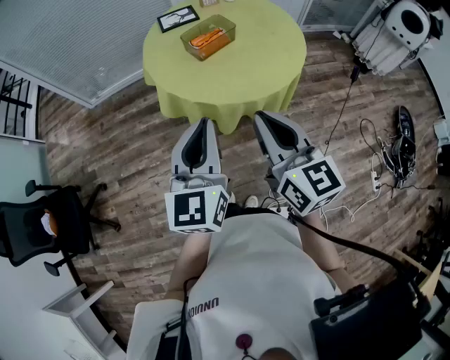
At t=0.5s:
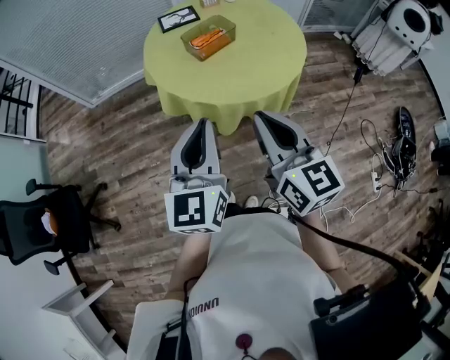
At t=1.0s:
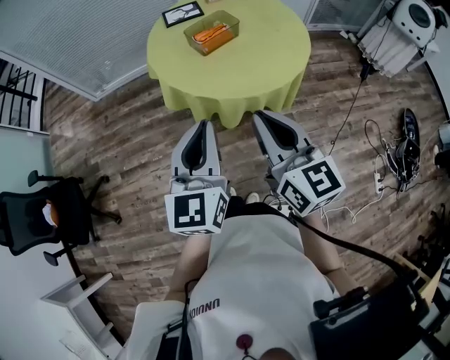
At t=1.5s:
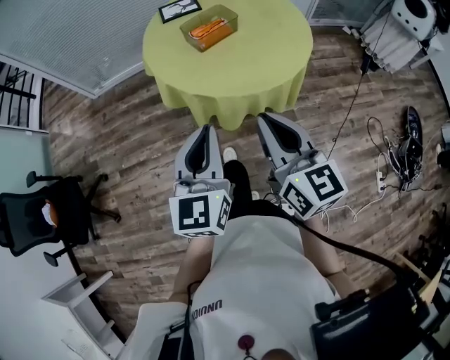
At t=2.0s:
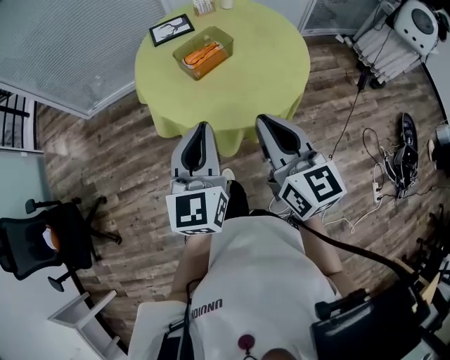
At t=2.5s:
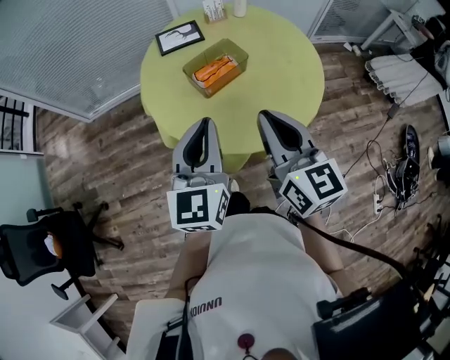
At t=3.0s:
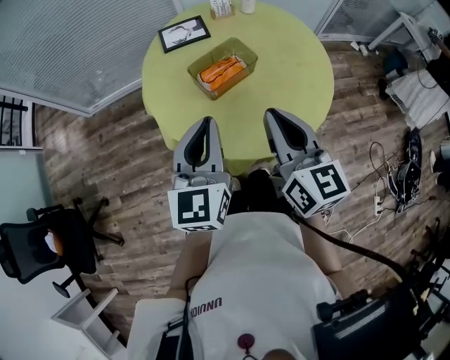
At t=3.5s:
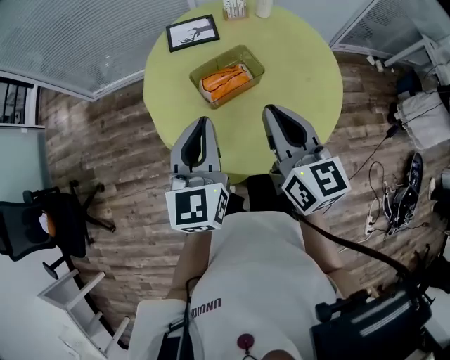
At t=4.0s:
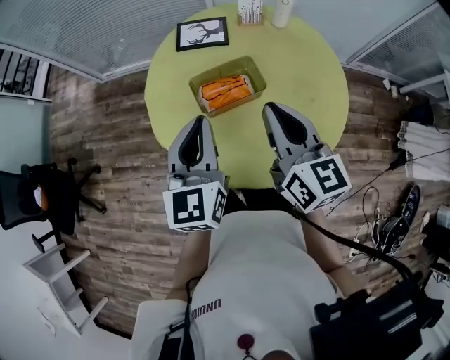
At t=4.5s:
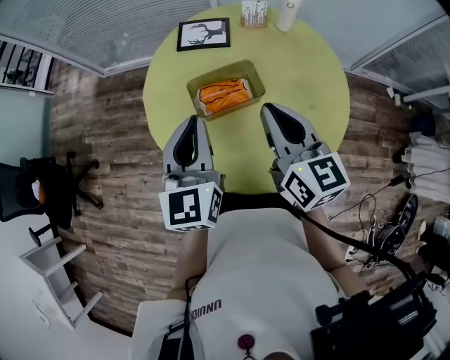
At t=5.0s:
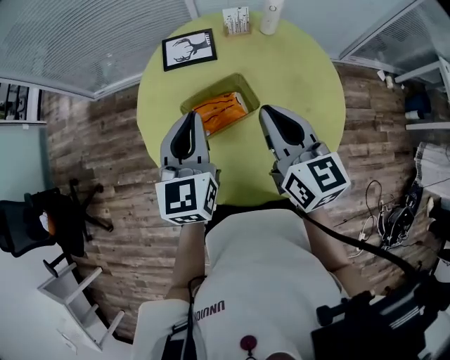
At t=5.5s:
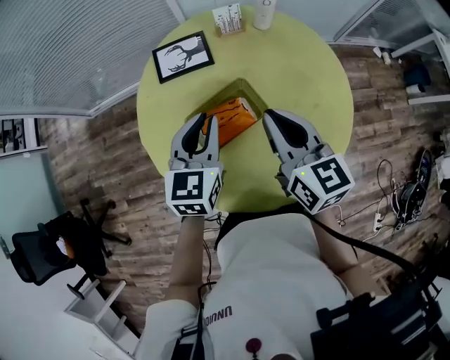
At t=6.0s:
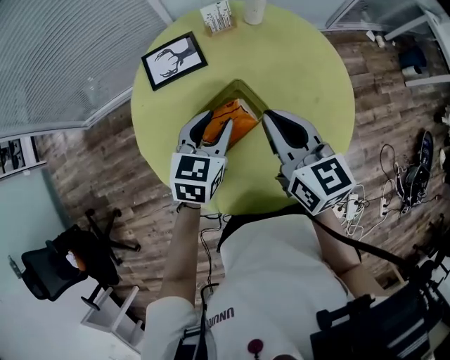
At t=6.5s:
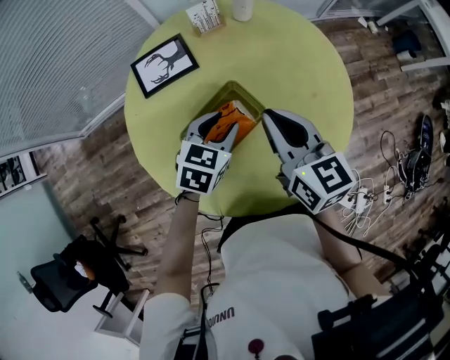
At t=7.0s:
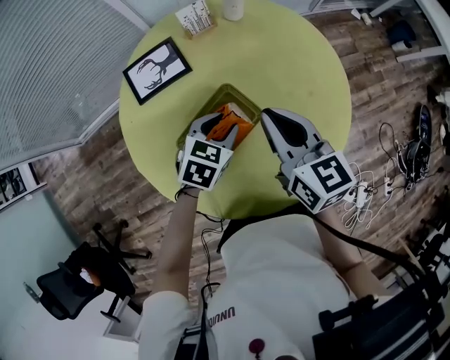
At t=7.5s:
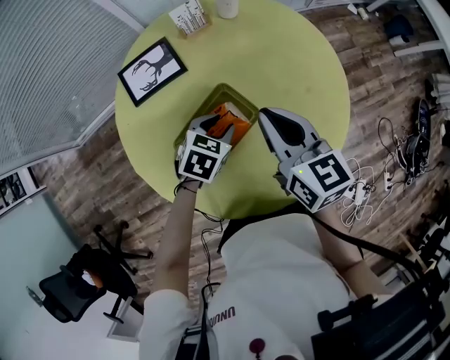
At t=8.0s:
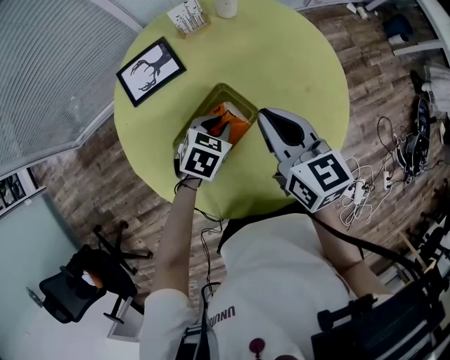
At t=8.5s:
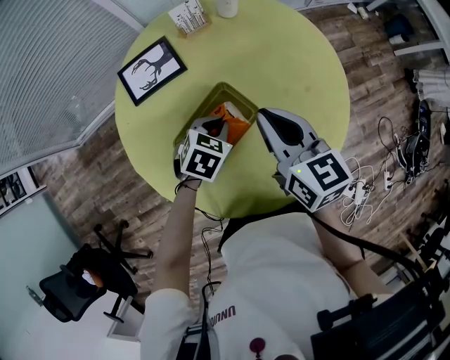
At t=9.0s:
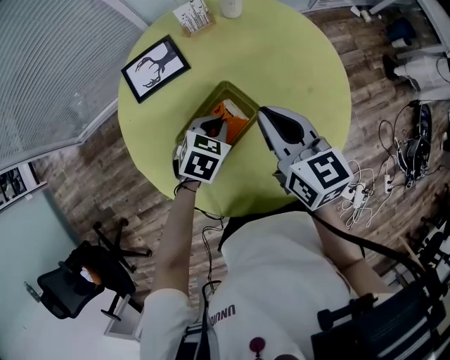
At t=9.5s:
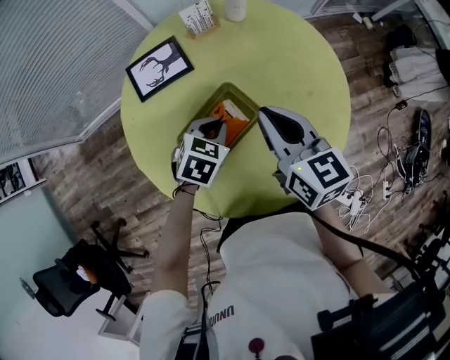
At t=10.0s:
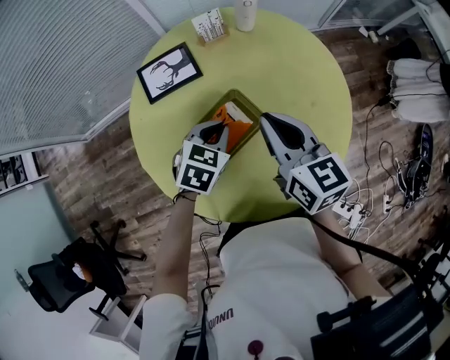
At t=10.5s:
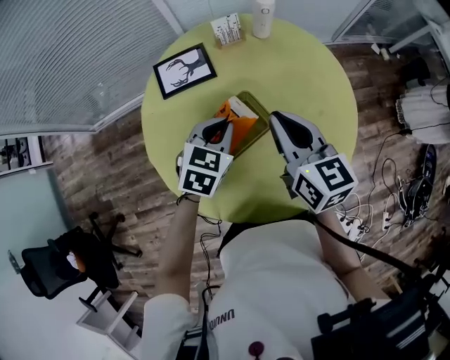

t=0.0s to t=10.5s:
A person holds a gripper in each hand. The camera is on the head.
t=0.0s to t=2.0s: Both grippers travel together forward, approximately 10 cm.
t=2.0s to t=4.0s: Both grippers move forward, about 25 cm. The left gripper turns by some 20 degrees.
t=4.0s to t=6.5s: The right gripper moves roughly 10 cm; the left gripper is displaced downward by approximately 20 cm, tips its fingers downward by approximately 30 degrees, and opens up.
t=6.5s to t=8.5s: The left gripper is displaced downward by about 5 cm, and closes up.
t=8.5s to t=10.5s: The left gripper is displaced upward by roughly 10 cm, and turns by roughly 20 degrees.

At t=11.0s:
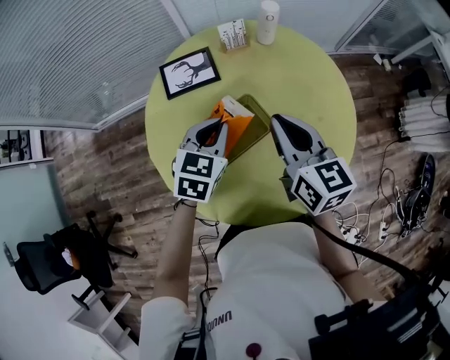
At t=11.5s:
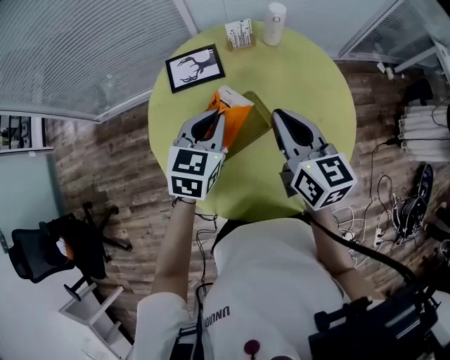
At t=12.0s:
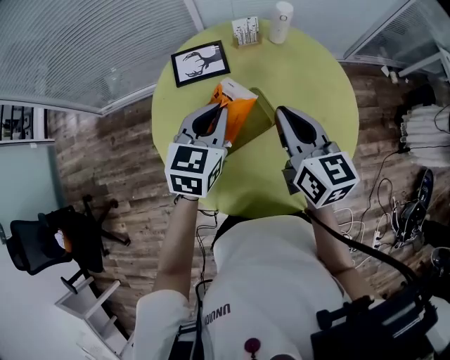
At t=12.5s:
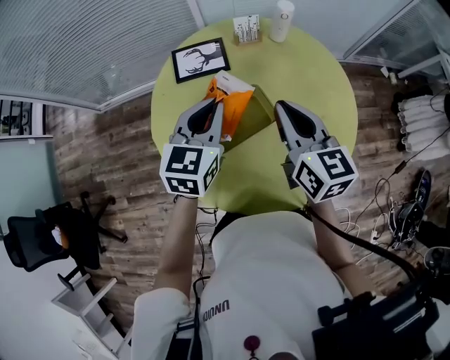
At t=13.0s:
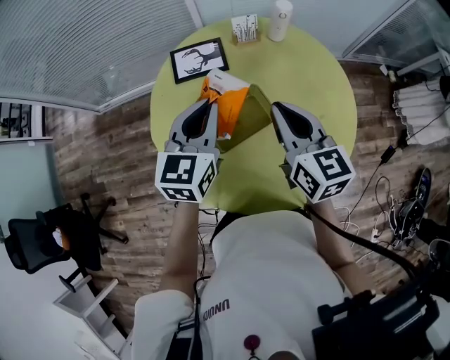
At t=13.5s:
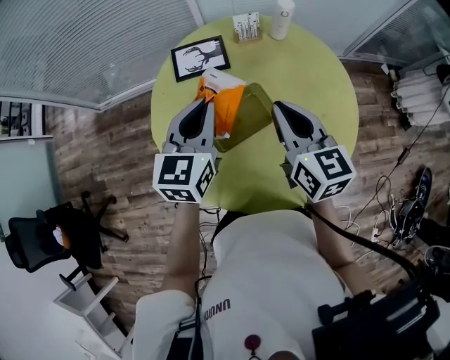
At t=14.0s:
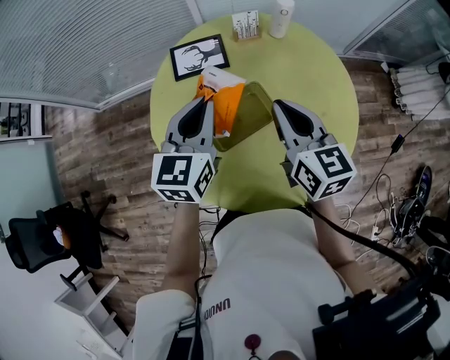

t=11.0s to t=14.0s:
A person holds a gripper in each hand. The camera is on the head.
t=11.0s to t=12.5s: The left gripper is displaced upward by some 5 cm.
t=12.5s to t=14.0s: The grippers move only a little.

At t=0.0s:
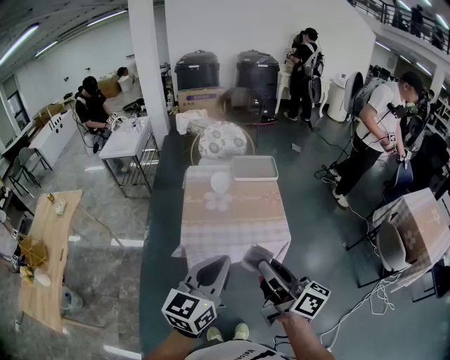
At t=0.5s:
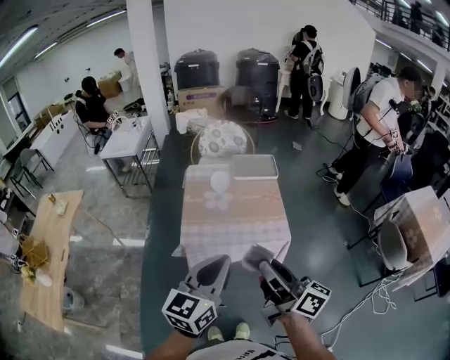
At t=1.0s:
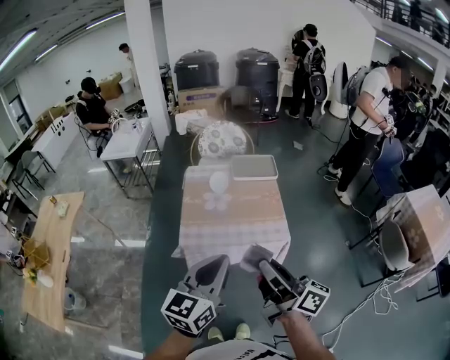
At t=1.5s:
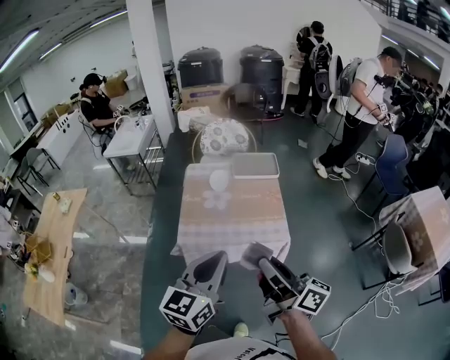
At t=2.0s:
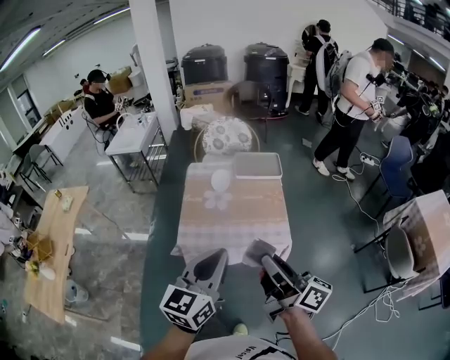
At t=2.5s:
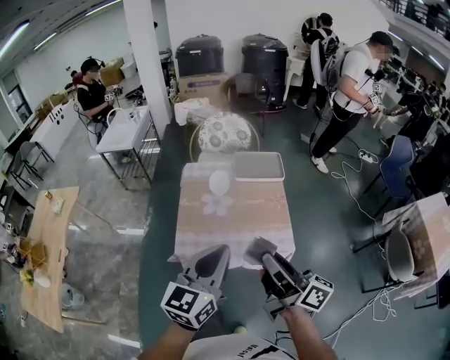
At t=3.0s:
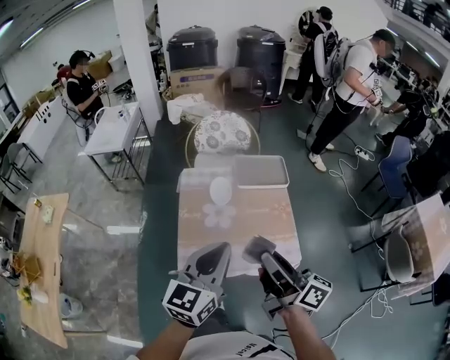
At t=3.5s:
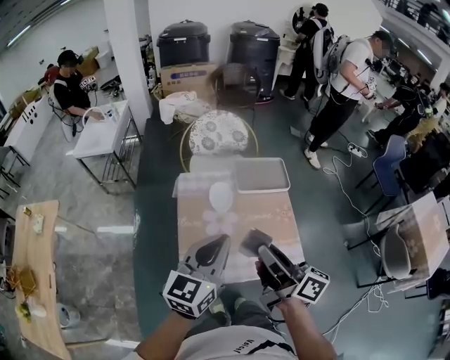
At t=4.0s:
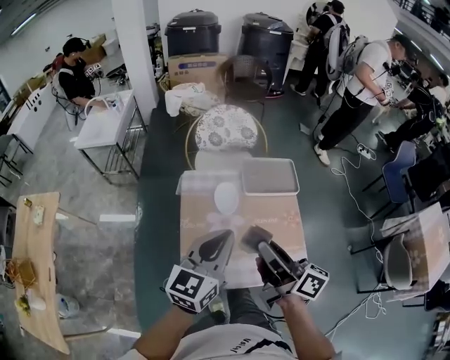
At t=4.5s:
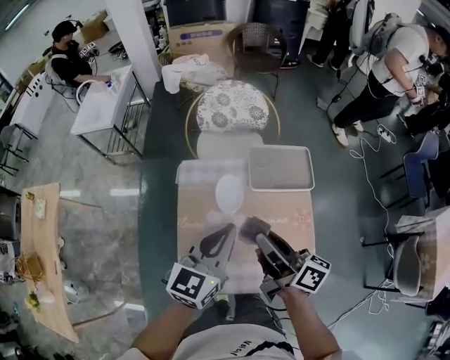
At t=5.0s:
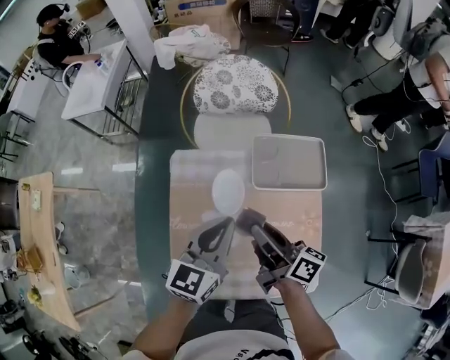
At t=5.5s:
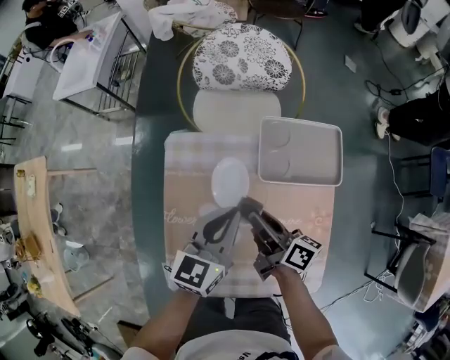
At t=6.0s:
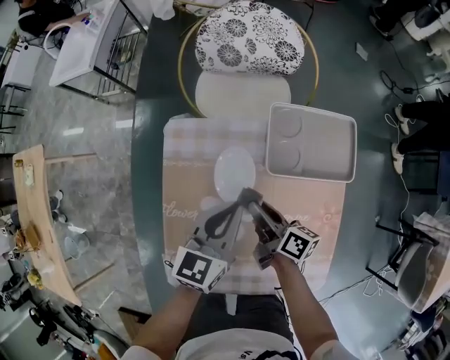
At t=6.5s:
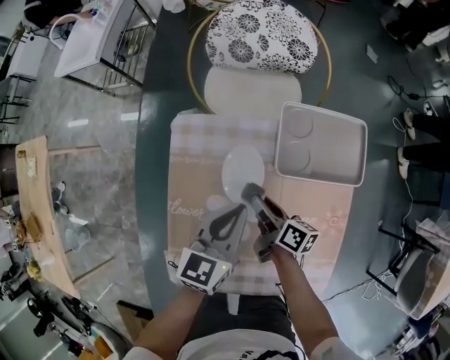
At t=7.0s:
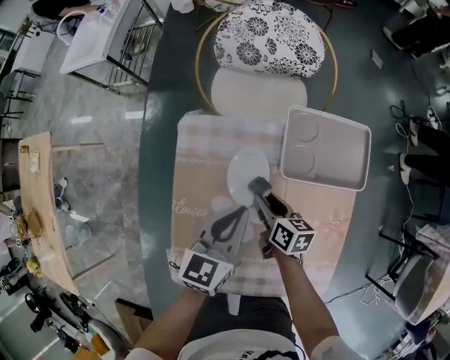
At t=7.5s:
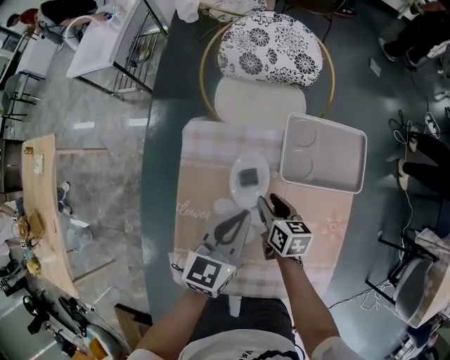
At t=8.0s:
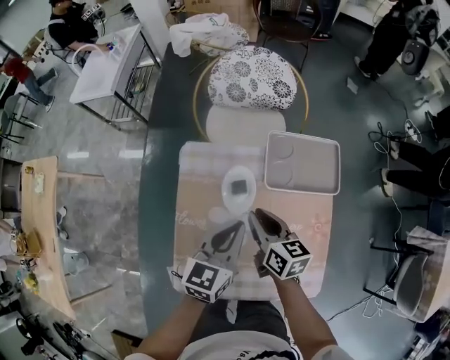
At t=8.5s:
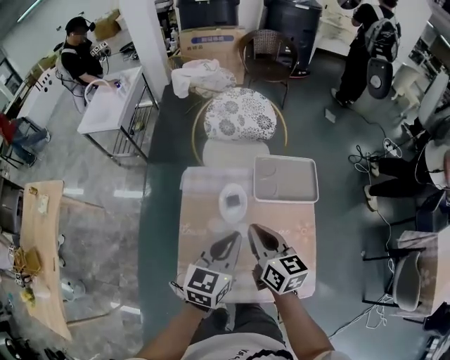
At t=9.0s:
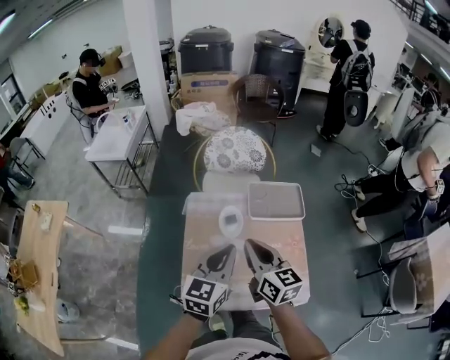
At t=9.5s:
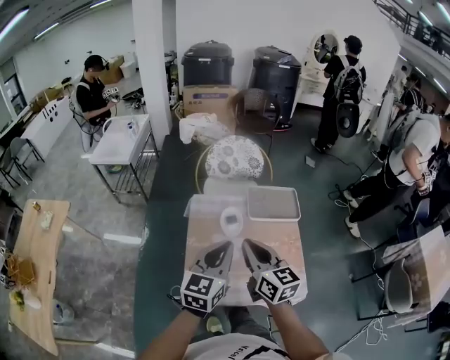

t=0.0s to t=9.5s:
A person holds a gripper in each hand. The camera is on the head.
t=0.0s to t=2.0s: The left gripper ends up approximately 5 cm from where it was. Meanwhile the right gripper shifts roughly 5 cm to the right.
t=2.0s to t=4.0s: Both grippers move forward, some 30 cm.
t=4.0s to t=5.5s: The two grippers go approximately 35 cm downward and forward. The right gripper rotates some 20 degrees.
t=5.5s to t=7.5s: The right gripper heads downward, covering approximately 10 cm, and swivels approximately 40 degrees.
t=7.5s to t=9.5s: Both grippers move upward and backward, some 35 cm. The right gripper tips its fingers upward by some 30 degrees, and closes up.

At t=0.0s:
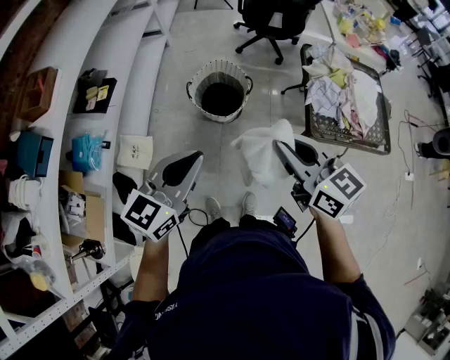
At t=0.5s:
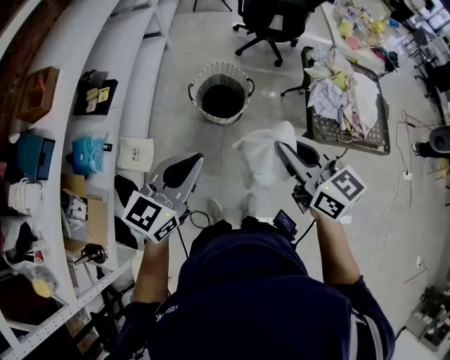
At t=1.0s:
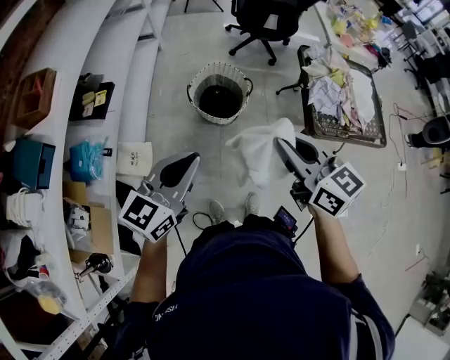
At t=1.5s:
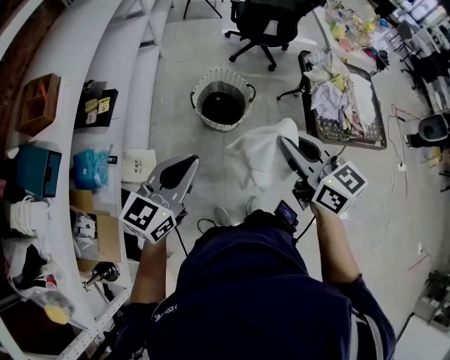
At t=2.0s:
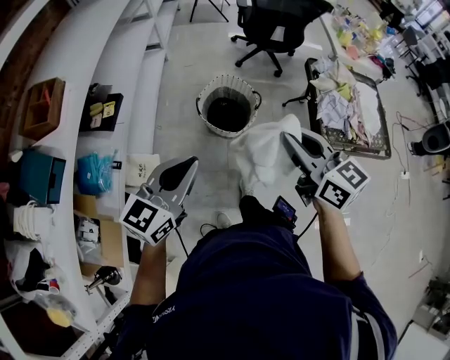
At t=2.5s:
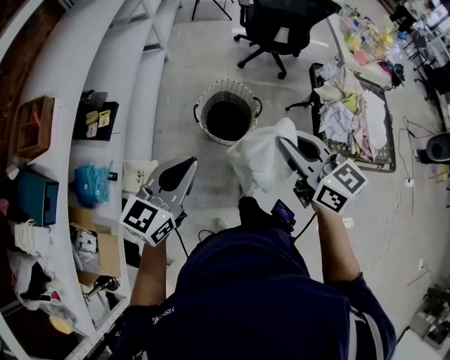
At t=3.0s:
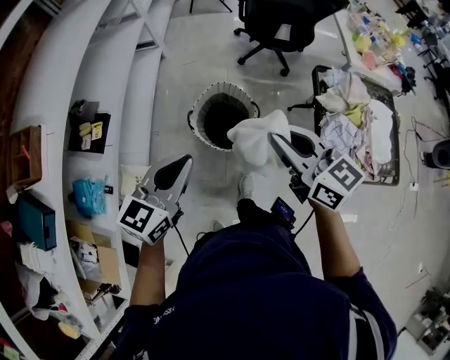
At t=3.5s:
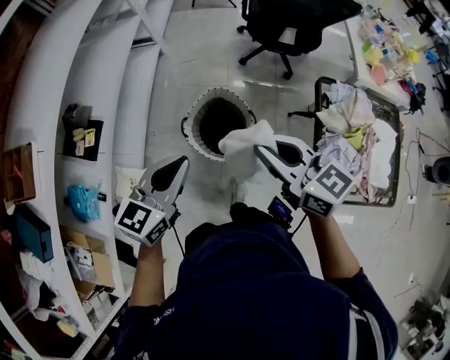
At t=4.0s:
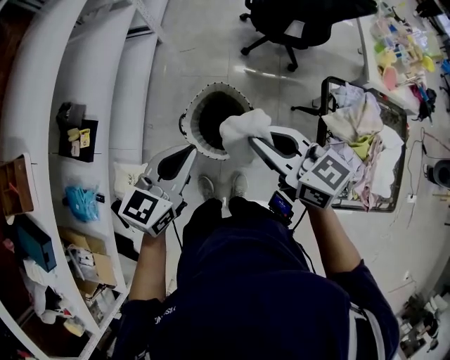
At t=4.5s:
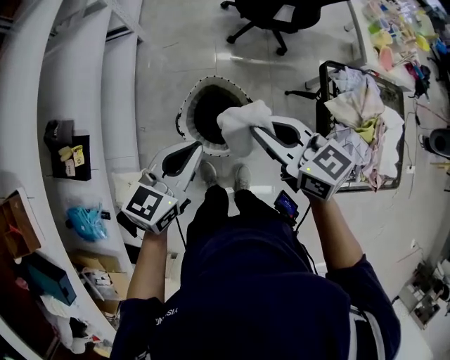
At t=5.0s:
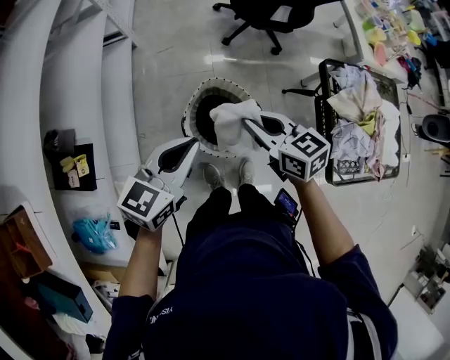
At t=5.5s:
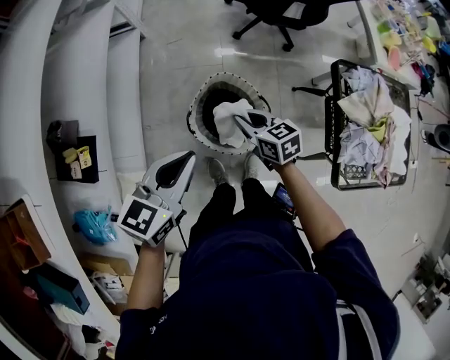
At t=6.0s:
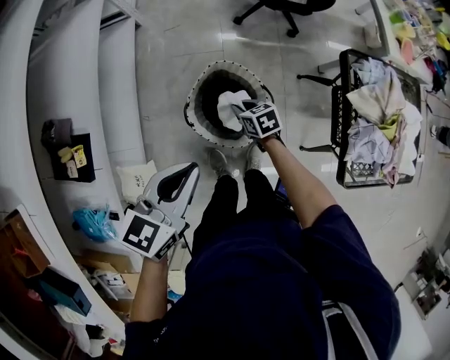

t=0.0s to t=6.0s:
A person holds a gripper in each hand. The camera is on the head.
t=0.0s to t=2.0s: The right gripper goes some 10 cm to the left and forward, while the left gripper is displaced to the left by some 15 cm.
t=2.0s to t=4.0s: The right gripper travels forward by about 35 cm, and turns by about 20 degrees. The left gripper is displaced forward and to the right by roughly 40 cm.
t=4.0s to t=6.0s: The right gripper travels downward by some 40 cm, and tips its fingers downward by some 40 degrees. Meanwhile the left gripper goes approximately 10 cm to the left and downward.
